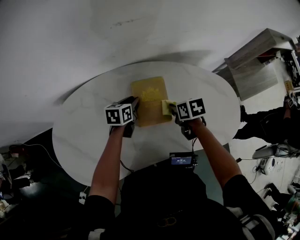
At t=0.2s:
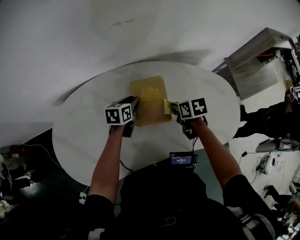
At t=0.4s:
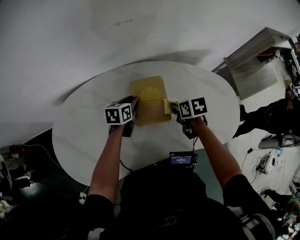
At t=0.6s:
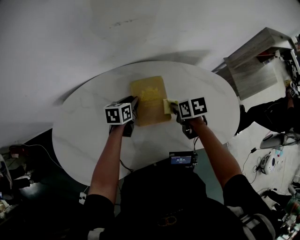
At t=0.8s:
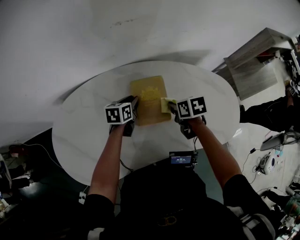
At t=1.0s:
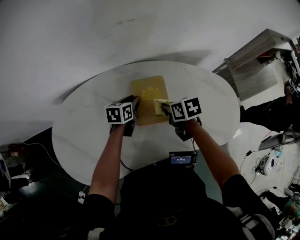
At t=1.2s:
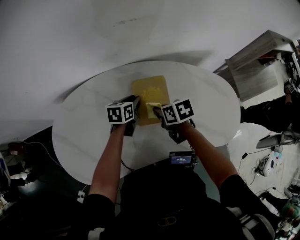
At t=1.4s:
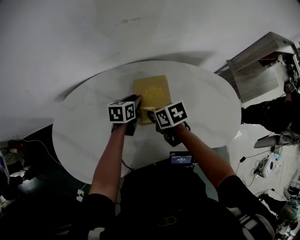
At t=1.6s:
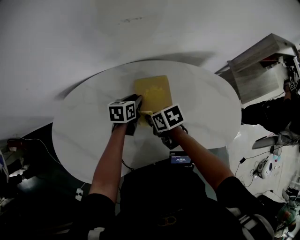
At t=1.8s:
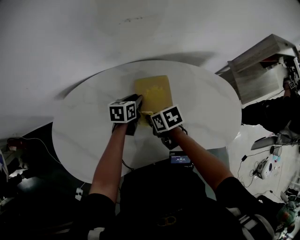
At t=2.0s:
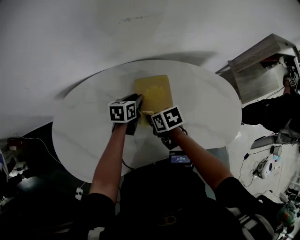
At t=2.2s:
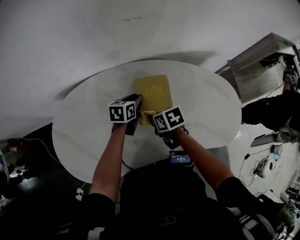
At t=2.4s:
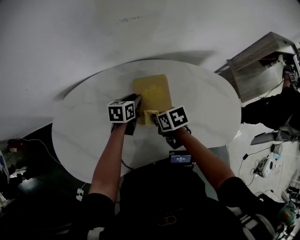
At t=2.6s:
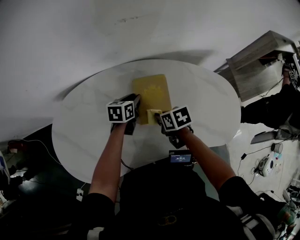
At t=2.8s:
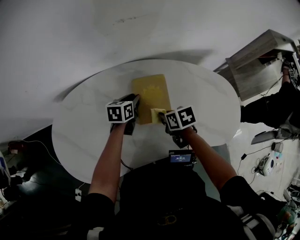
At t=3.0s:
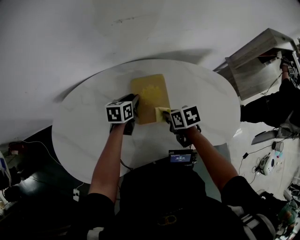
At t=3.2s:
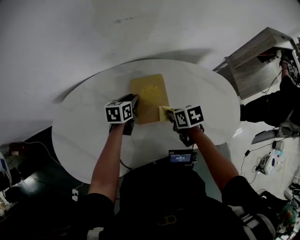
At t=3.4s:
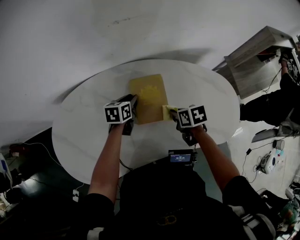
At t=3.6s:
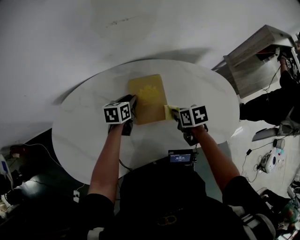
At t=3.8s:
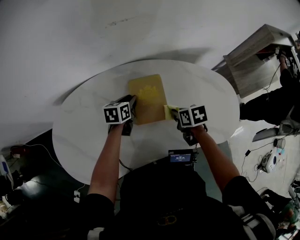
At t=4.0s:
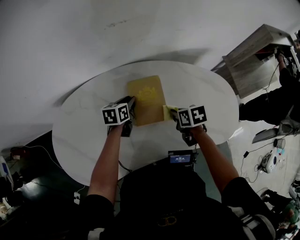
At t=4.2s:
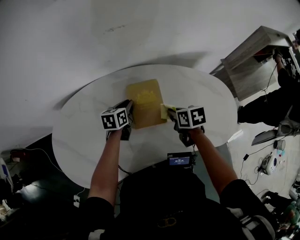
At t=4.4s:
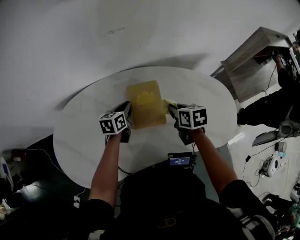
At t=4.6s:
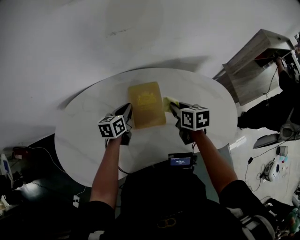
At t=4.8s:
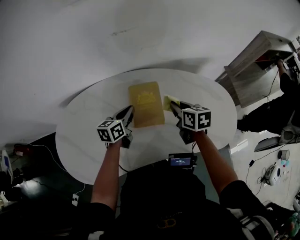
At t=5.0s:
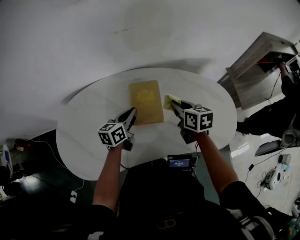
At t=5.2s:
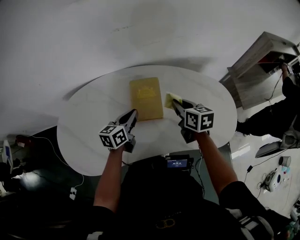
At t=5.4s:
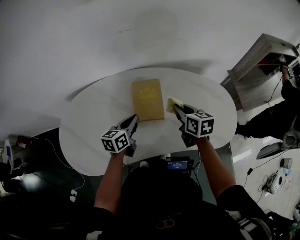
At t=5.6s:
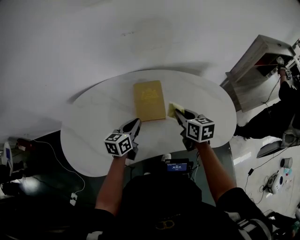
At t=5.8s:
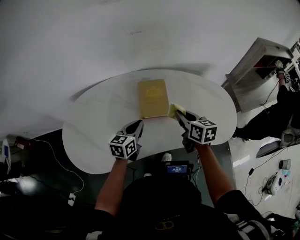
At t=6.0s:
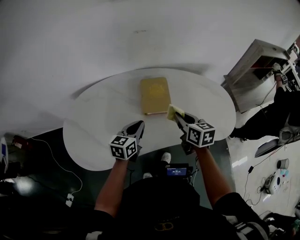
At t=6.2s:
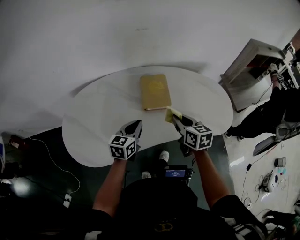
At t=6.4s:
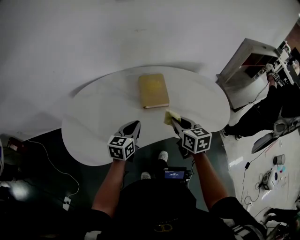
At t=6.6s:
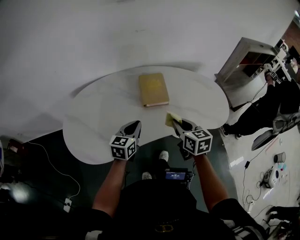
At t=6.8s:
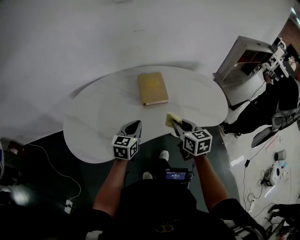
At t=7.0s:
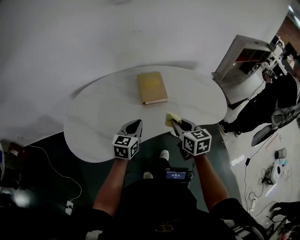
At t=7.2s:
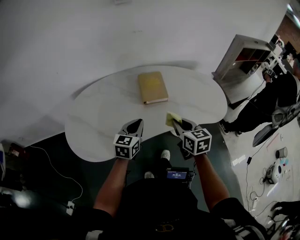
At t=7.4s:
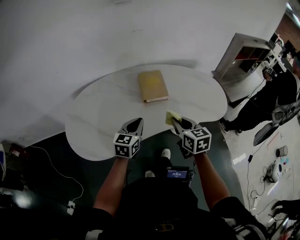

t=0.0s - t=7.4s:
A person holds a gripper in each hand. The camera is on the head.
t=0.0s - t=1.4s: The right gripper is displaced to the left by roughly 10 cm.
t=1.4s - t=3.0s: The right gripper goes about 5 cm to the right.
t=3.0s - t=4.4s: The right gripper moves to the right and upward, roughly 10 cm.
t=4.4s - t=6.0s: The right gripper heads backward and upward, covering some 15 cm, and changes its angle by roughly 20 degrees, while the left gripper shifts roughly 20 cm backward.
t=6.0s - t=7.4s: The left gripper goes roughly 10 cm backward. The right gripper heads backward, covering some 15 cm.

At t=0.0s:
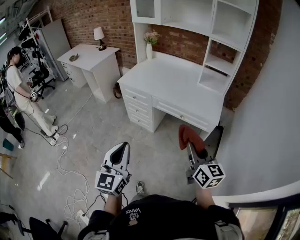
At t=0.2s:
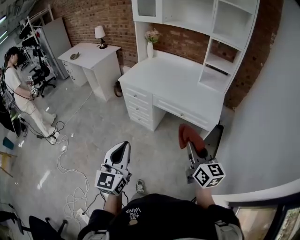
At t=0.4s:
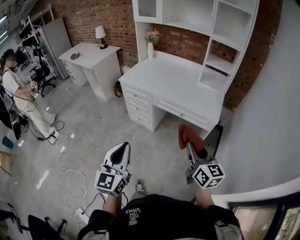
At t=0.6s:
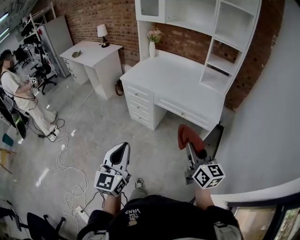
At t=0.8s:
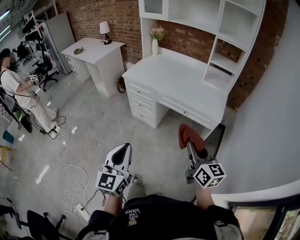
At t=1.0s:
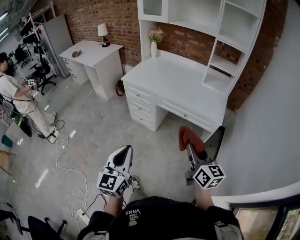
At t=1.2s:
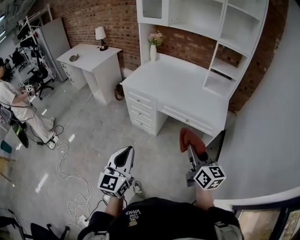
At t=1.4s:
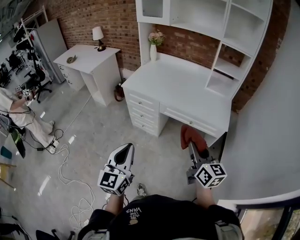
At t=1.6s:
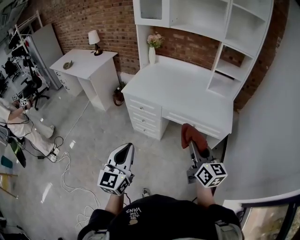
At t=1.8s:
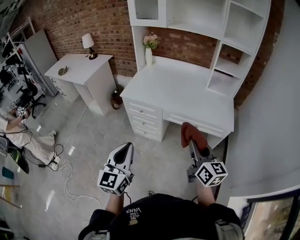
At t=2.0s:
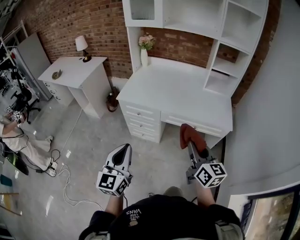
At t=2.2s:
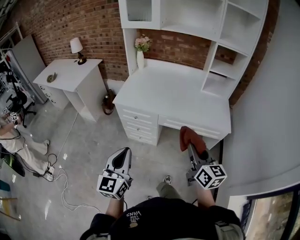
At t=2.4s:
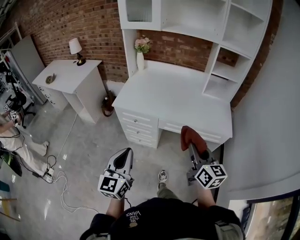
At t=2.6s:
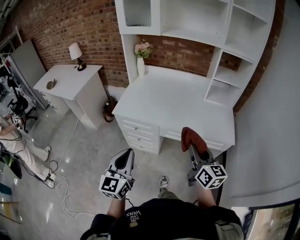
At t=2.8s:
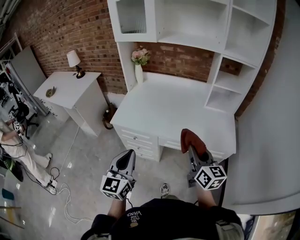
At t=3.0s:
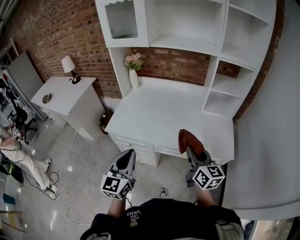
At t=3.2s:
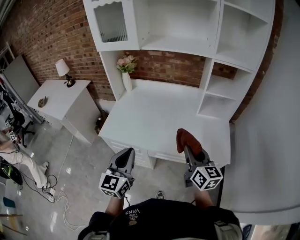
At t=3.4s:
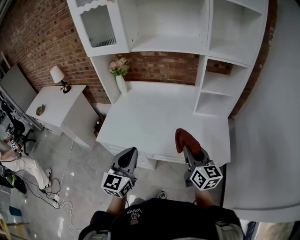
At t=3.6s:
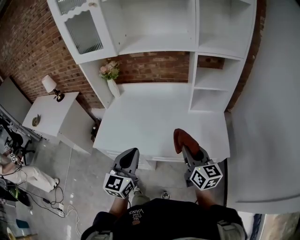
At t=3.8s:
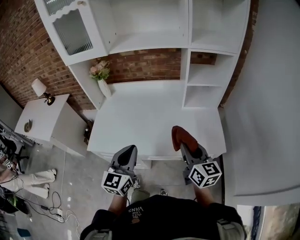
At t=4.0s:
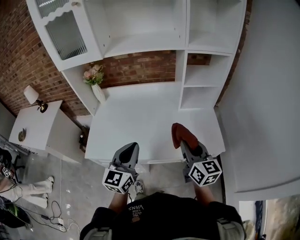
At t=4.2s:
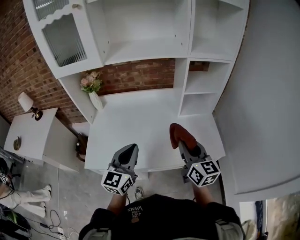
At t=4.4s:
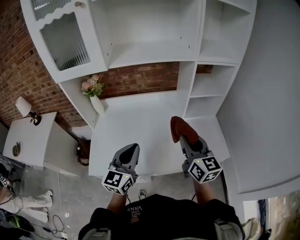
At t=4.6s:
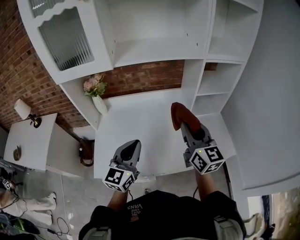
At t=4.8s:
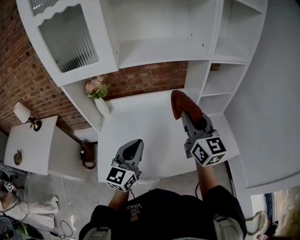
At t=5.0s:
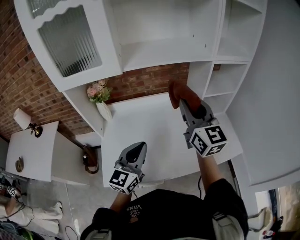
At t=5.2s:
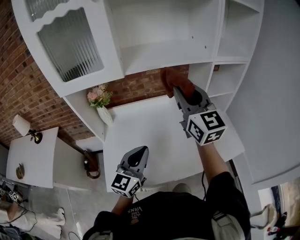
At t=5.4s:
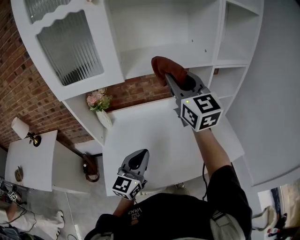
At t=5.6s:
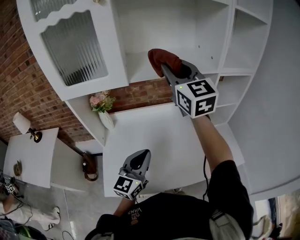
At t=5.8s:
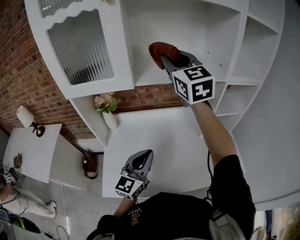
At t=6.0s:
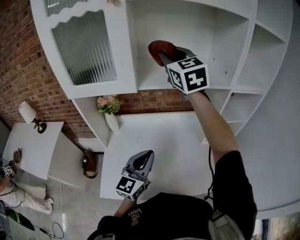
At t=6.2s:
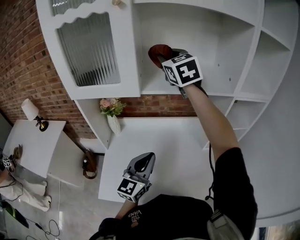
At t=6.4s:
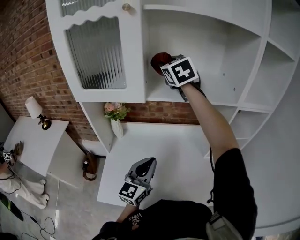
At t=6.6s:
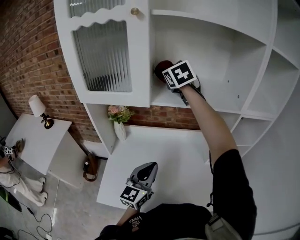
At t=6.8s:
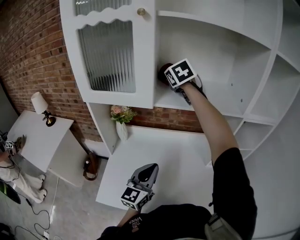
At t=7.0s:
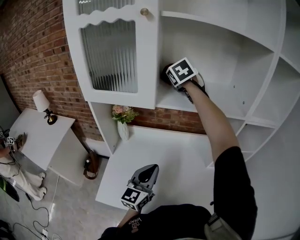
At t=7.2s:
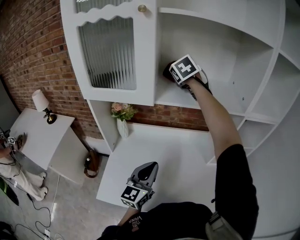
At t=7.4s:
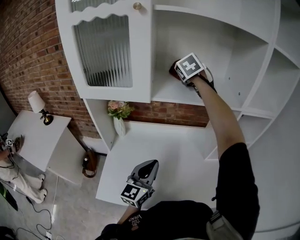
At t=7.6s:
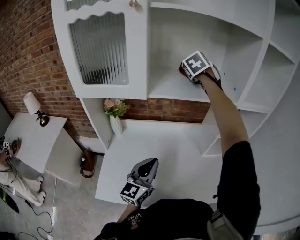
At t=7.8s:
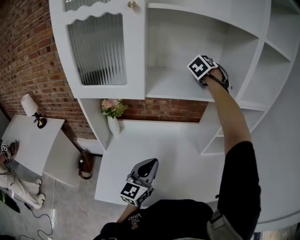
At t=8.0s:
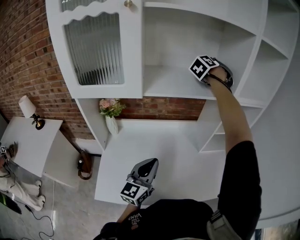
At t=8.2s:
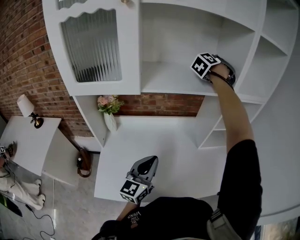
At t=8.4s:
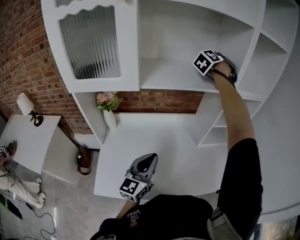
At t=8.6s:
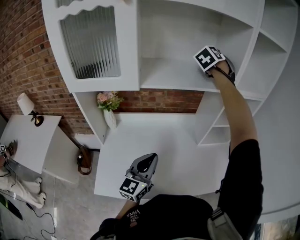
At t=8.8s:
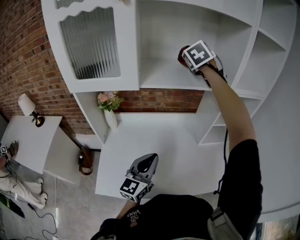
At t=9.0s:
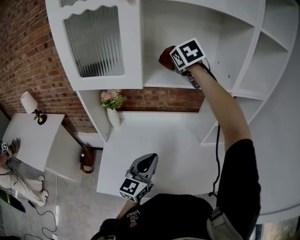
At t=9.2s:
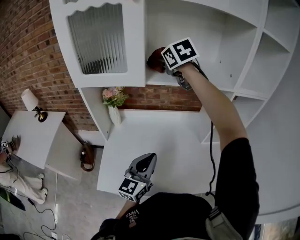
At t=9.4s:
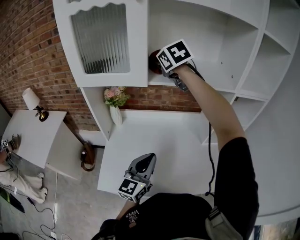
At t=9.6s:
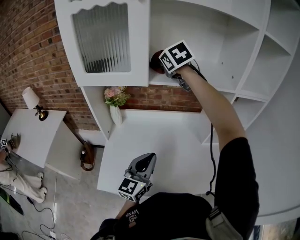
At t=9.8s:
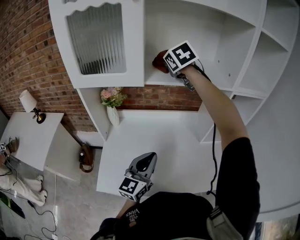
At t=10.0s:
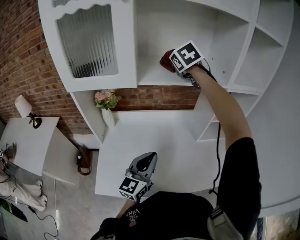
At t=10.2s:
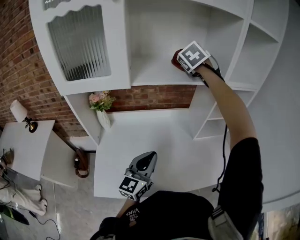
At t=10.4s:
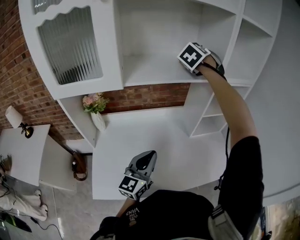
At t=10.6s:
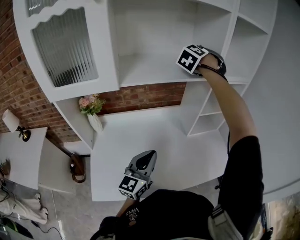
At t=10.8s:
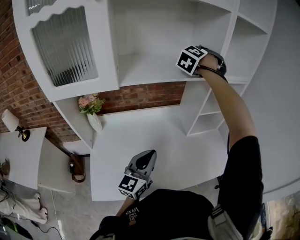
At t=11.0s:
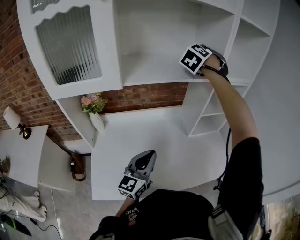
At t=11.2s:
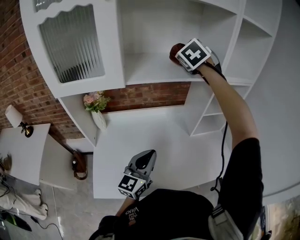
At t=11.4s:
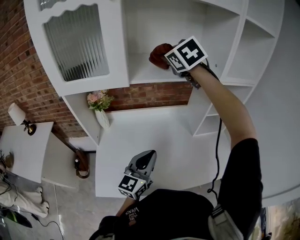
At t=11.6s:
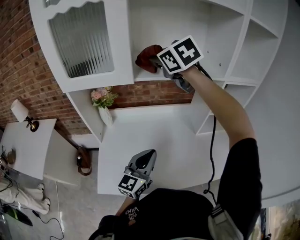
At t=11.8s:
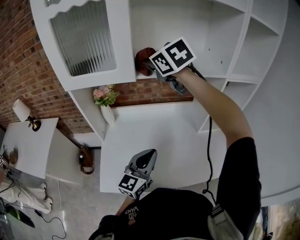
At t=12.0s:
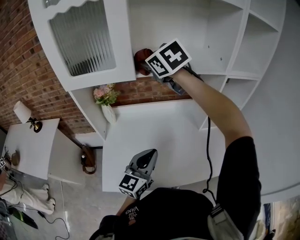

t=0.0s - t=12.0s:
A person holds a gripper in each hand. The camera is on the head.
t=0.0s - t=1.6s: Both grippers travel together forward and to the left, approximately 20 cm.
t=1.6s - t=3.0s: Both grippers travel together forward, roughly 30 cm.
t=3.0s - t=4.4s: The two grippers go approximately 25 cm forward. The left gripper changes its angle by some 30 degrees.
t=4.4s - t=6.0s: The right gripper heads forward, upward and to the left, covering approximately 50 cm, and rotates roughly 30 degrees. Meanwhile the left gripper travels forward and to the left by roughly 15 cm.
t=6.0s - t=7.6s: The right gripper goes approximately 15 cm forward, downward and to the right, and tips its fingers downward by some 30 degrees.
t=9.0s - t=10.4s: The right gripper shifts by about 15 cm, and rotates some 30 degrees.
t=10.4s - t=12.0s: The left gripper changes place by some 5 cm. The right gripper moves some 25 cm, and changes its angle by approximately 50 degrees.

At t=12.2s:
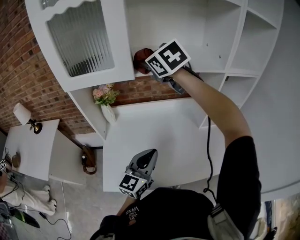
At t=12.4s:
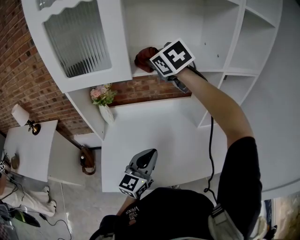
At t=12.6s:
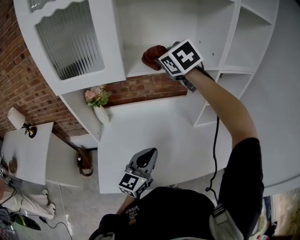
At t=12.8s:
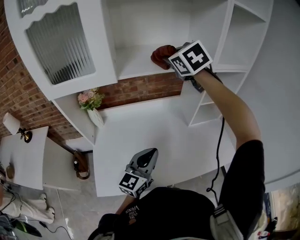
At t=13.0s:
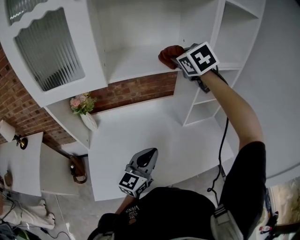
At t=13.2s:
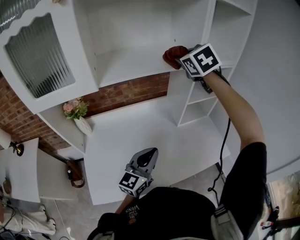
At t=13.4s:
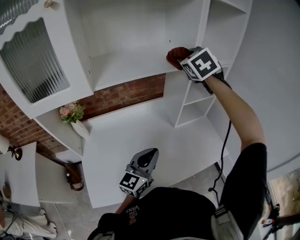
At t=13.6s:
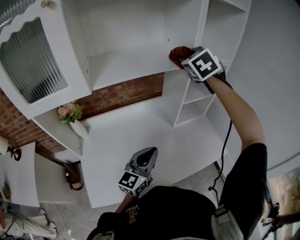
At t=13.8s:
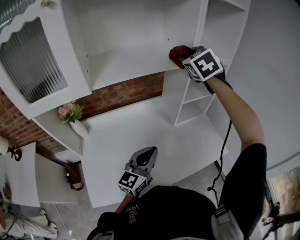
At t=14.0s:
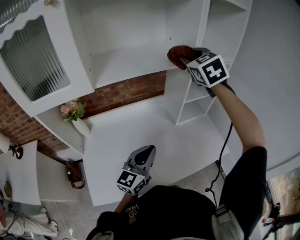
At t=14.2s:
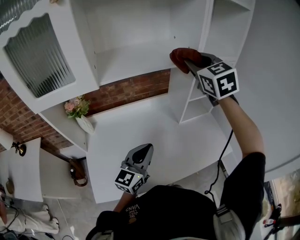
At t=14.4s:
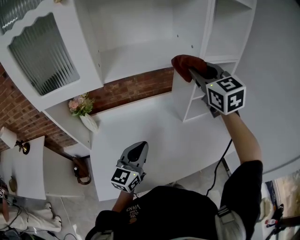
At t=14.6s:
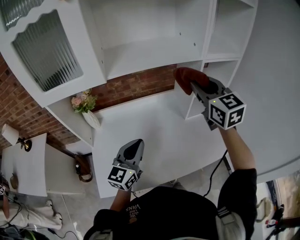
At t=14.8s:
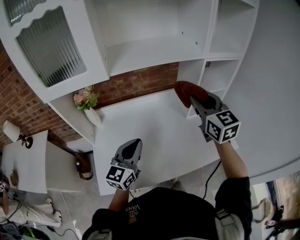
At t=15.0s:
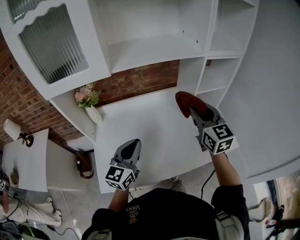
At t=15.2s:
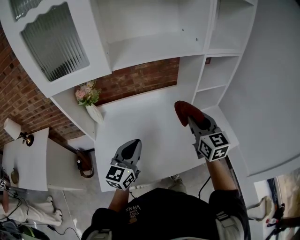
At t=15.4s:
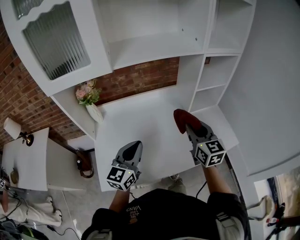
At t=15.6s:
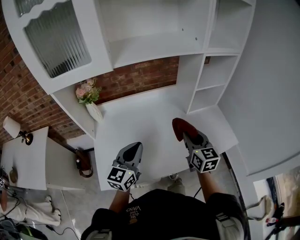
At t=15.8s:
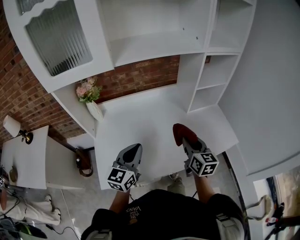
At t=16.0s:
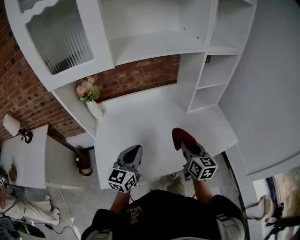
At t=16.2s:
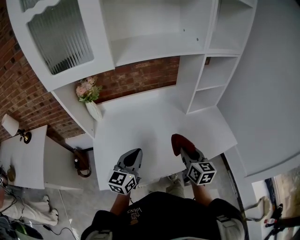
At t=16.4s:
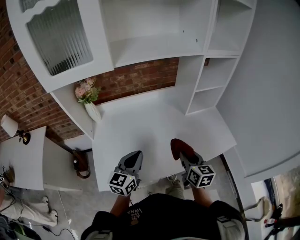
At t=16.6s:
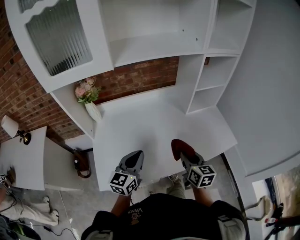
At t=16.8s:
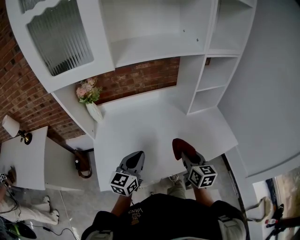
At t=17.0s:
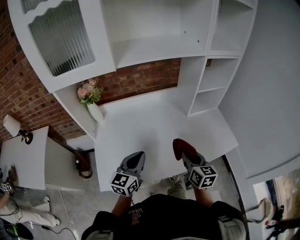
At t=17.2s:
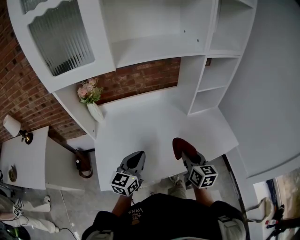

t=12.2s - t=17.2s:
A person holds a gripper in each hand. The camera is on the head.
t=12.2s - t=13.8s: The right gripper moves approximately 30 cm, and turns by some 30 degrees, while the left gripper moves some 10 cm.
t=13.8s - t=15.6s: The right gripper heads backward and downward, covering about 40 cm, and rotates around the line of its fingers by some 40 degrees, clockwise from behind. Meanwhile the left gripper travels to the left and backward by roughly 15 cm.
t=15.6s - t=17.2s: The left gripper ends up approximately 5 cm from where it was; the right gripper heads backward and downward, covering roughly 10 cm.
